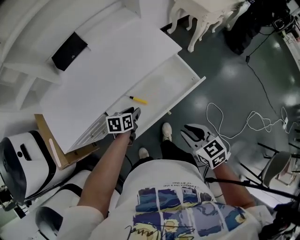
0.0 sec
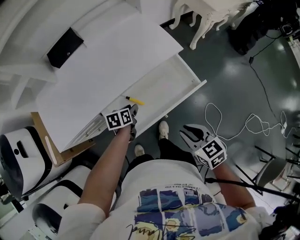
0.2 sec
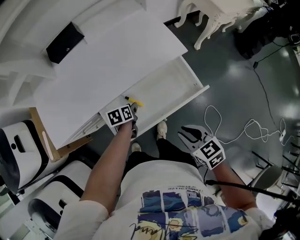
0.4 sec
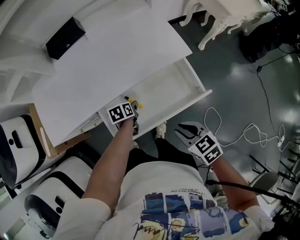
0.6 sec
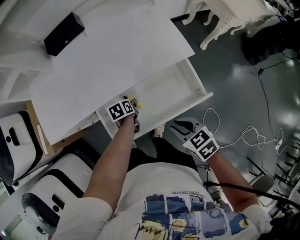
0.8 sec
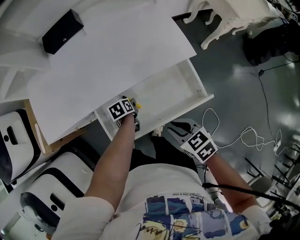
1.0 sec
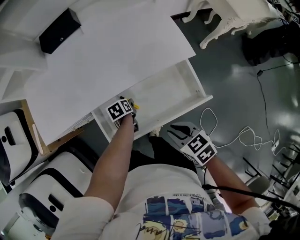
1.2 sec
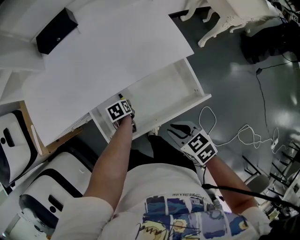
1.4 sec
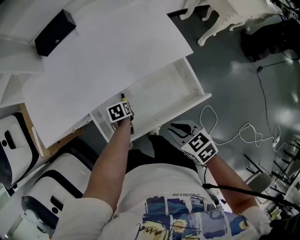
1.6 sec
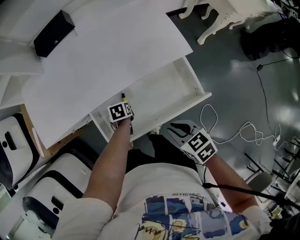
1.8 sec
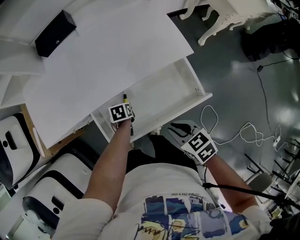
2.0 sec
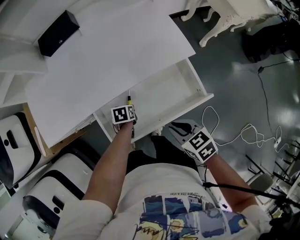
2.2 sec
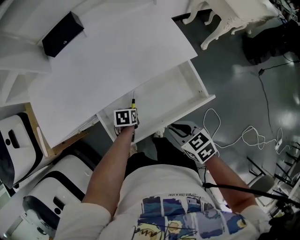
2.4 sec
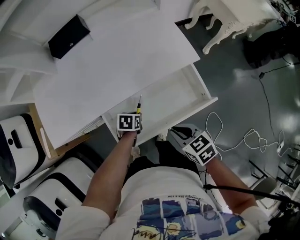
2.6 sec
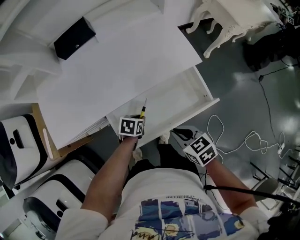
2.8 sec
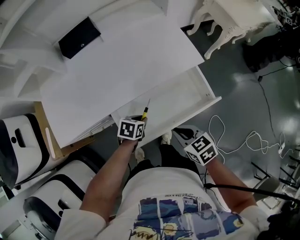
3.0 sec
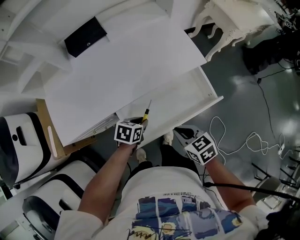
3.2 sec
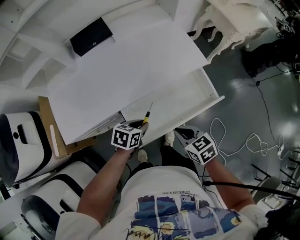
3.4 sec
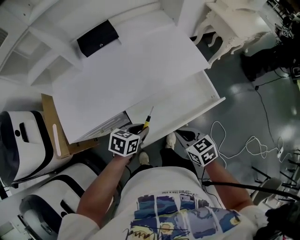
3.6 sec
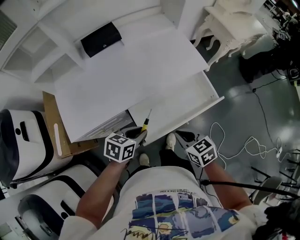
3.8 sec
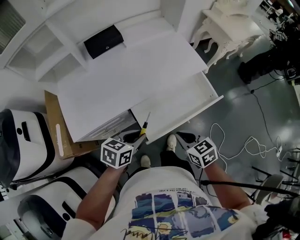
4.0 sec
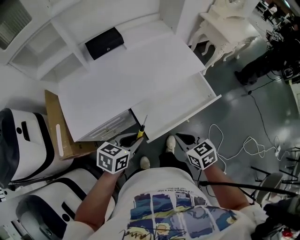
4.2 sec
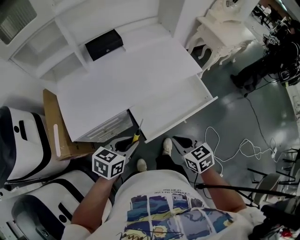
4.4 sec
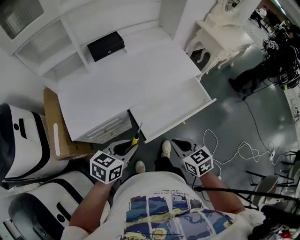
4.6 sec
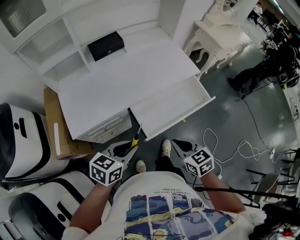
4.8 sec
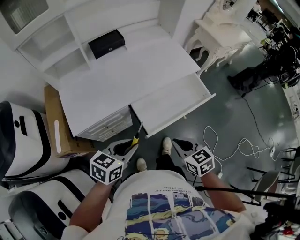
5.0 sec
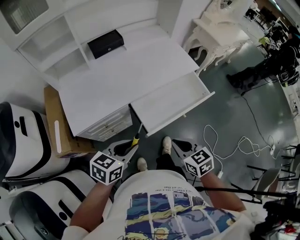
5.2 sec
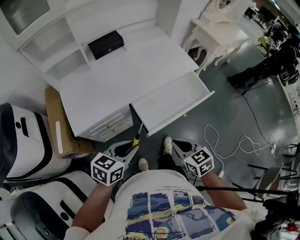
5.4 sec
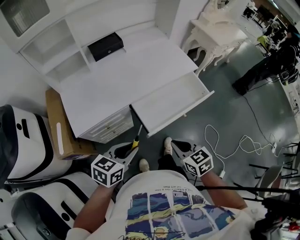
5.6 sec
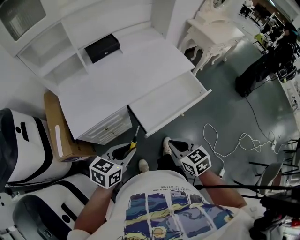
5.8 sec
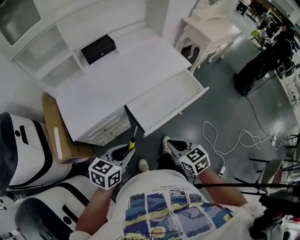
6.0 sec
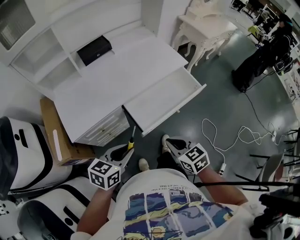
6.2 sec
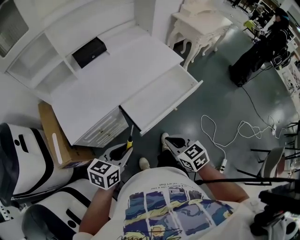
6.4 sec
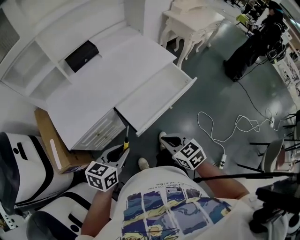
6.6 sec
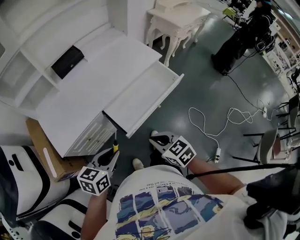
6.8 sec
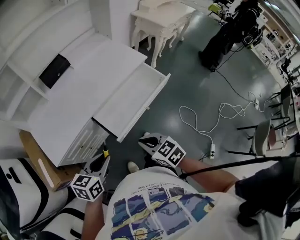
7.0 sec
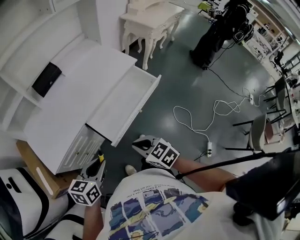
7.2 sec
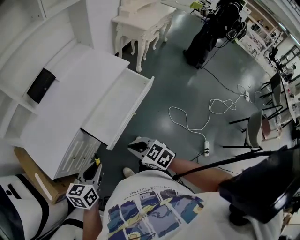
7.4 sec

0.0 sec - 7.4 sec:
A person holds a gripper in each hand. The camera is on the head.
0.0 sec - 1.4 sec: The left gripper is displaced downward by roughly 15 cm, and swivels about 40 degrees, while the right gripper moves approximately 10 cm, and turns by roughly 30 degrees.
1.4 sec - 3.0 sec: The left gripper travels upward by approximately 10 cm, and rotates some 40 degrees; the right gripper changes place by approximately 5 cm.
3.0 sec - 4.4 sec: The right gripper shifts approximately 15 cm to the left, backward and upward. The left gripper shifts roughly 30 cm upward, backward and to the left, and rotates about 30 degrees.
4.4 sec - 6.0 sec: The two grippers go about 5 cm backward.
6.0 sec - 7.4 sec: The grippers stay close to where they were, moving slightly.

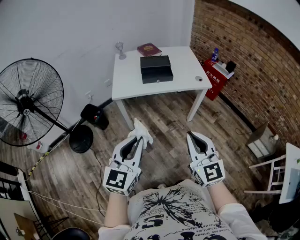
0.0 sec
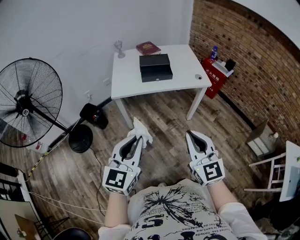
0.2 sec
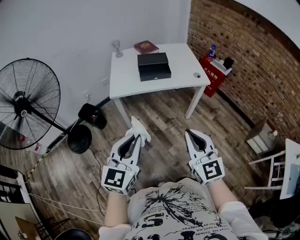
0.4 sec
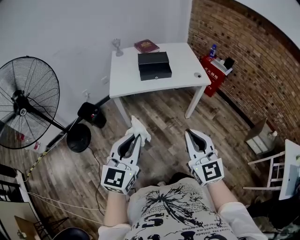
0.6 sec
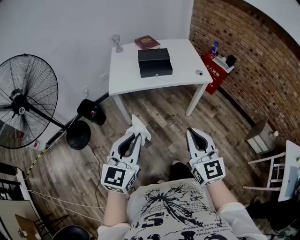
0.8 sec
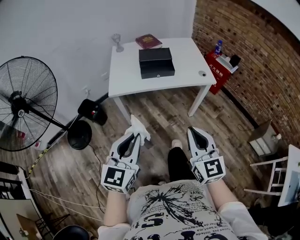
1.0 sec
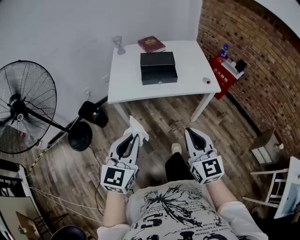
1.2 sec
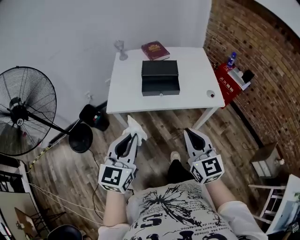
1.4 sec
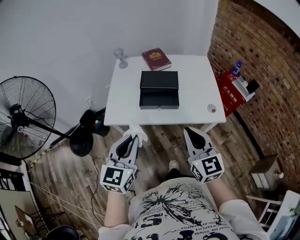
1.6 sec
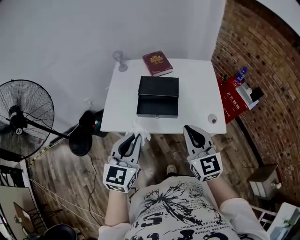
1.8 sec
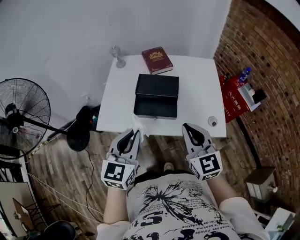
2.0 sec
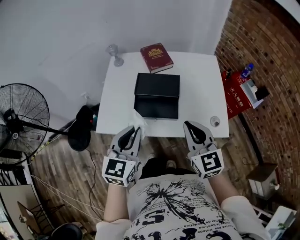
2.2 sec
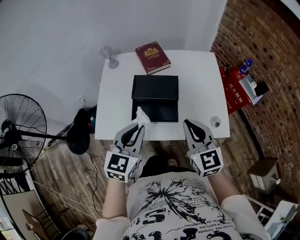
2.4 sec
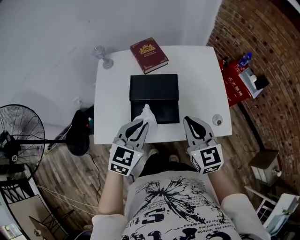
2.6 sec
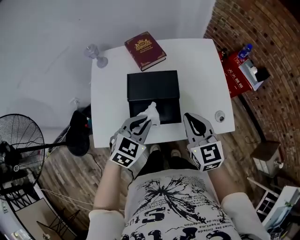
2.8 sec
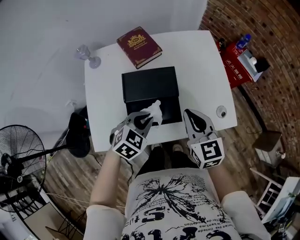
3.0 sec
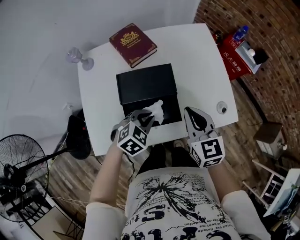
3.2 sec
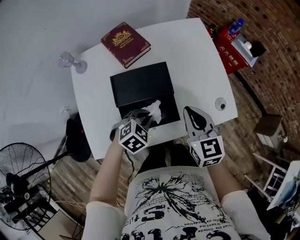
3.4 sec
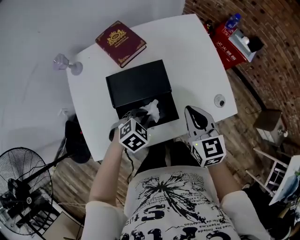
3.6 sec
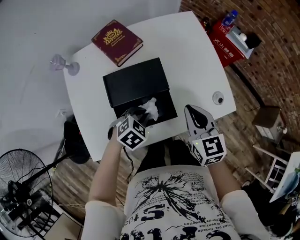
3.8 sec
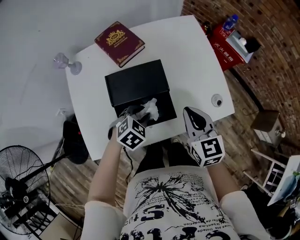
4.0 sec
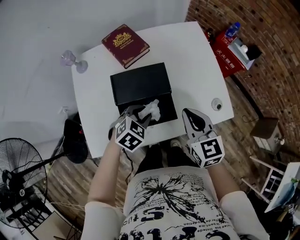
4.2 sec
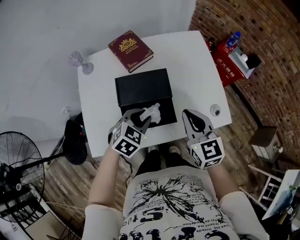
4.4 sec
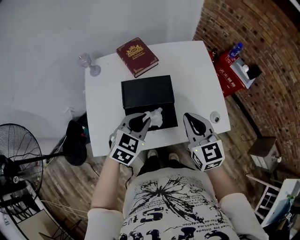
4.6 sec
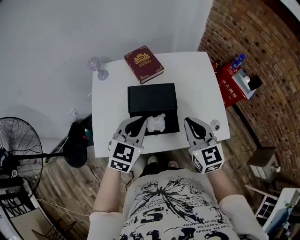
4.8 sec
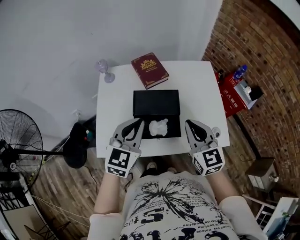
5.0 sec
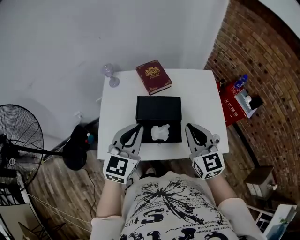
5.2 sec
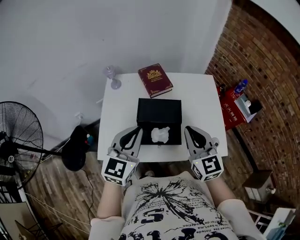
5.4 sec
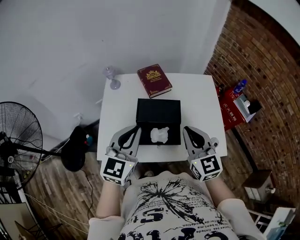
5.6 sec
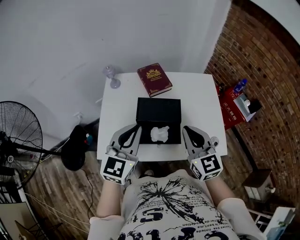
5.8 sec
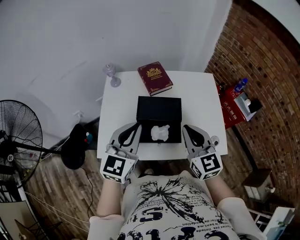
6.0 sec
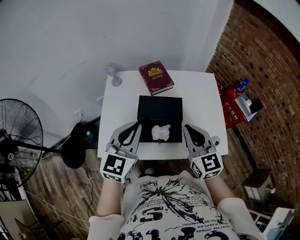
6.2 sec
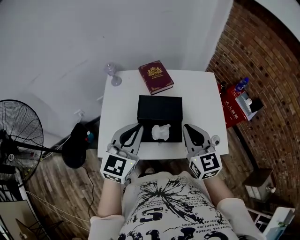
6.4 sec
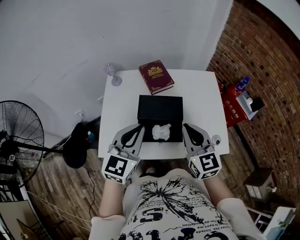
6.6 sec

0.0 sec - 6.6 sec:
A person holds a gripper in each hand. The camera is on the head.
0.0 sec - 1.6 sec: Both grippers travel together forward, about 35 cm.
1.6 sec - 3.2 sec: The left gripper changes place by roughly 40 cm, and points its fingers some 40 degrees further downward; the right gripper shifts by roughly 35 cm, and rotates some 20 degrees.
3.2 sec - 5.0 sec: The right gripper heads upward, covering approximately 10 cm, while the left gripper goes some 20 cm upward, tips its fingers upward by roughly 40 degrees, and opens, then closes again.
5.0 sec - 6.6 sec: The grippers move only a little.

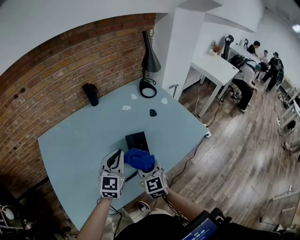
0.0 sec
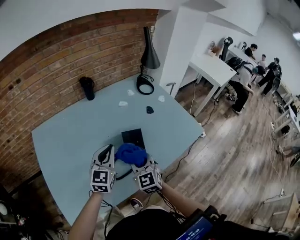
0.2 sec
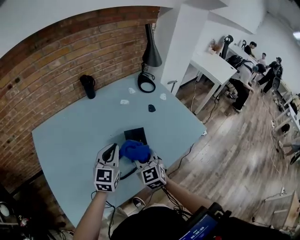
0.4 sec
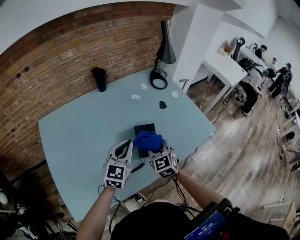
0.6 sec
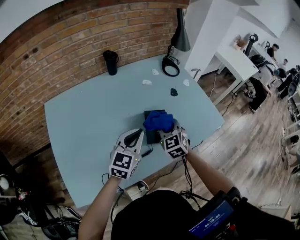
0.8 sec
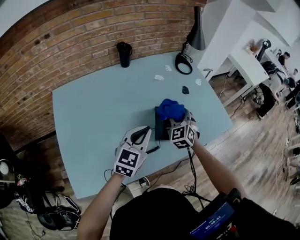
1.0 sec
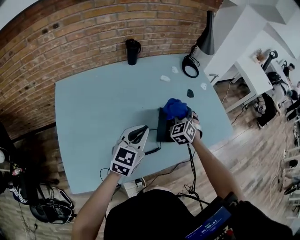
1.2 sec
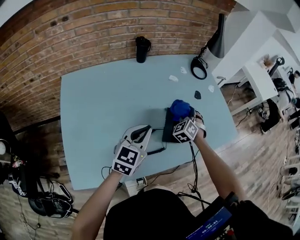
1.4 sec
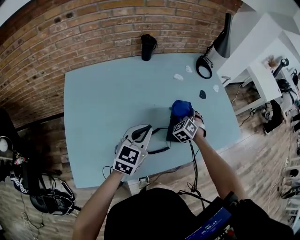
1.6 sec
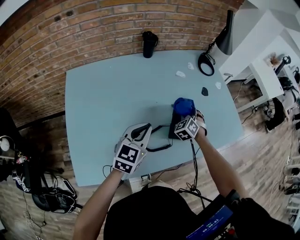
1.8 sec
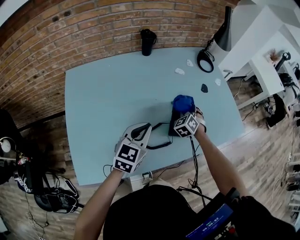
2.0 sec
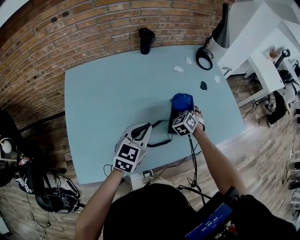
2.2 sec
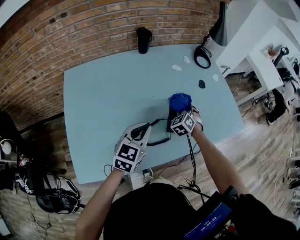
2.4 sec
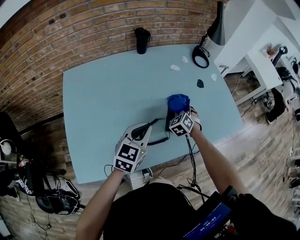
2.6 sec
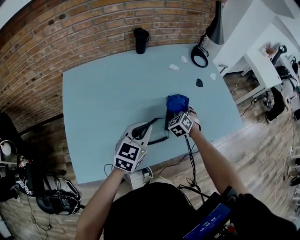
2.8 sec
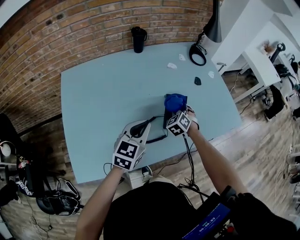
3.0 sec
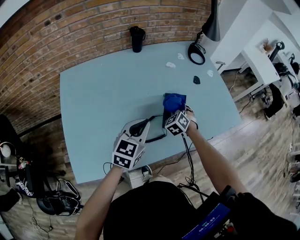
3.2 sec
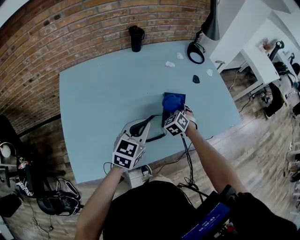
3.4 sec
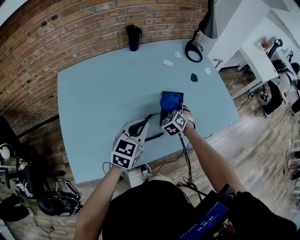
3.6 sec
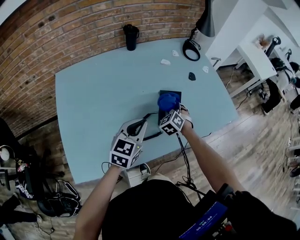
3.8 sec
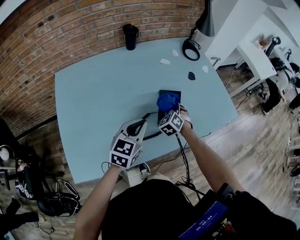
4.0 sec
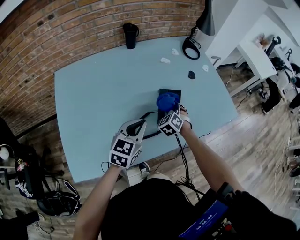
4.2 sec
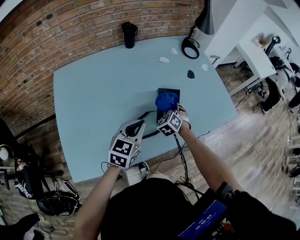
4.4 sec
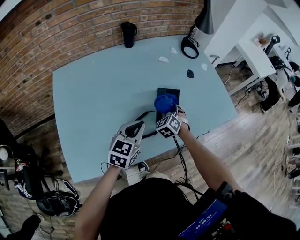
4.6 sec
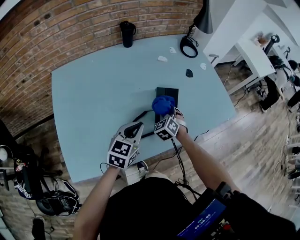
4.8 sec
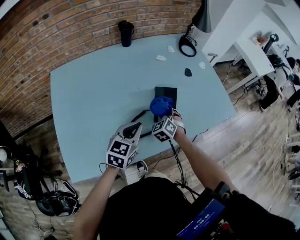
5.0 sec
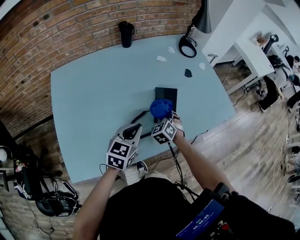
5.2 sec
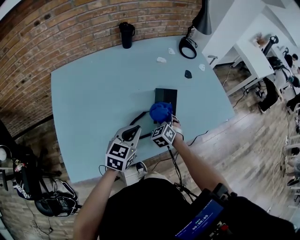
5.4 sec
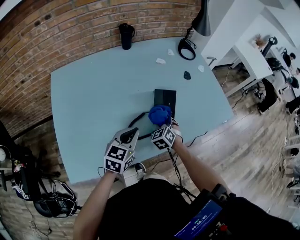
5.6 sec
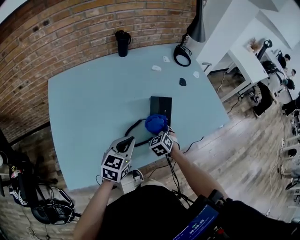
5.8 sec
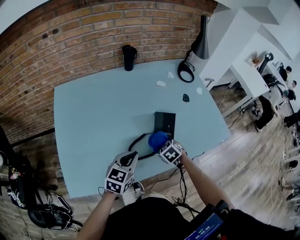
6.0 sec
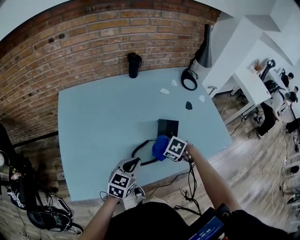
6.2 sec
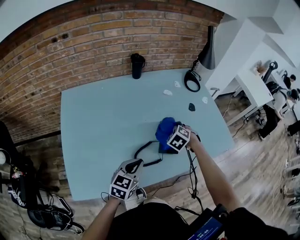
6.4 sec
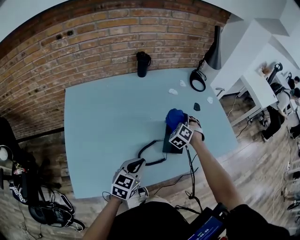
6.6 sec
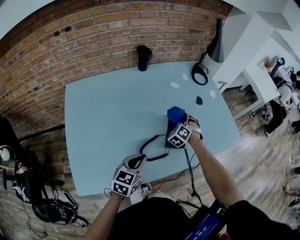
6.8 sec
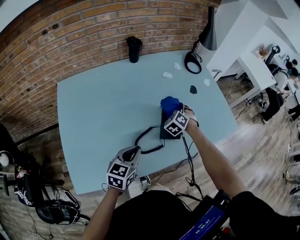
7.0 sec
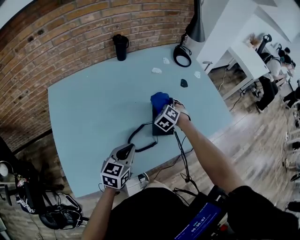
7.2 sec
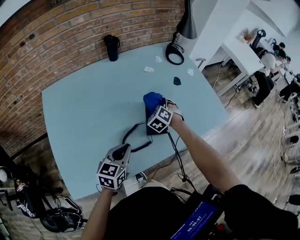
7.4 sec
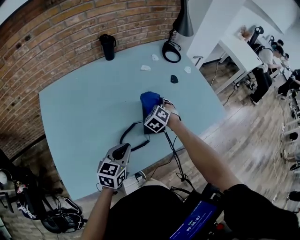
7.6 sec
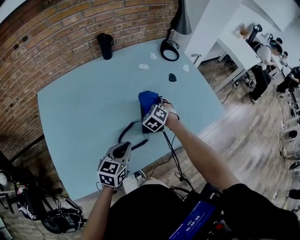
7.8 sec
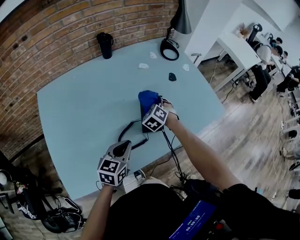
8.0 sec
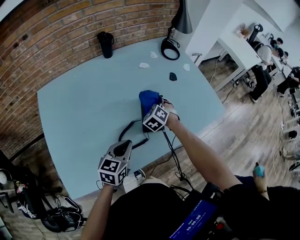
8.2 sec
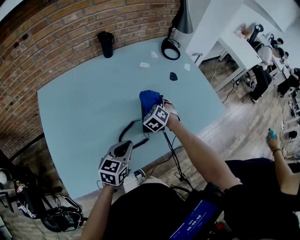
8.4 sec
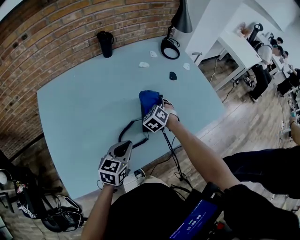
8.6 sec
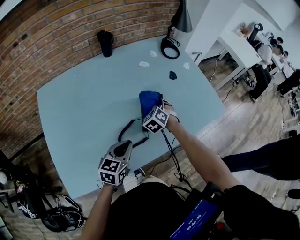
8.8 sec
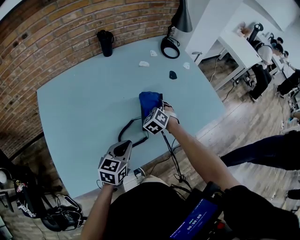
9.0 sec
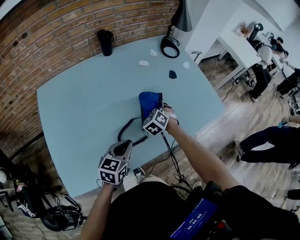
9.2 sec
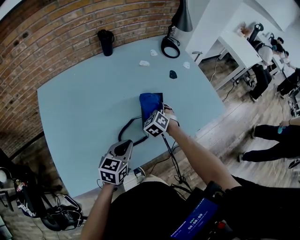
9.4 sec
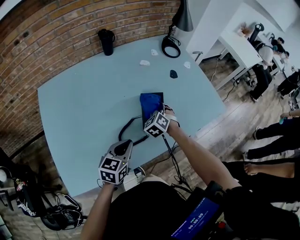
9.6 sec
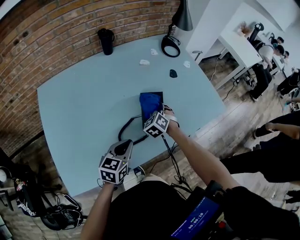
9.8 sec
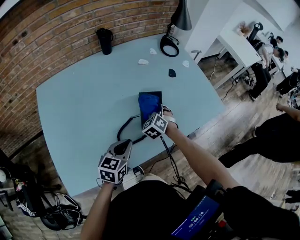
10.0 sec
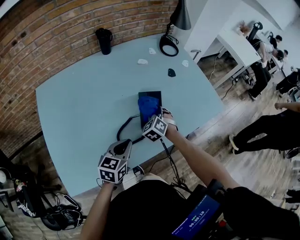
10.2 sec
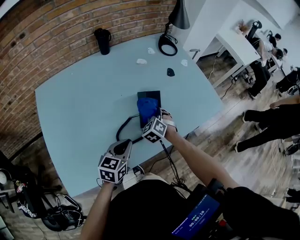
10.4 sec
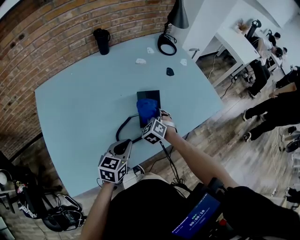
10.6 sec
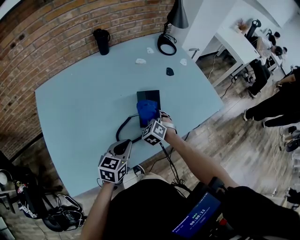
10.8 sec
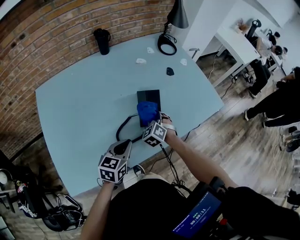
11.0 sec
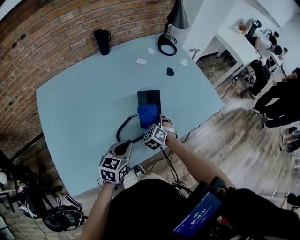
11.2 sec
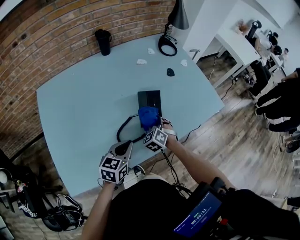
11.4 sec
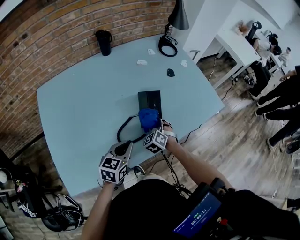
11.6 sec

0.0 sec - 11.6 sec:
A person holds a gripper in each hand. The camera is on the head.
0.0 sec - 1.4 sec: The right gripper goes some 20 cm forward and downward, and rotates around the line of its fingers by approximately 40 degrees, counterclockwise from behind; the left gripper travels to the left by some 5 cm.
1.4 sec - 2.8 sec: The right gripper moves downward, roughly 5 cm.
2.8 sec - 4.4 sec: The grippers make only small movements.
4.4 sec - 5.8 sec: The right gripper is displaced backward by some 5 cm.
5.8 sec - 7.2 sec: The right gripper changes place by about 15 cm.
7.2 sec - 8.8 sec: The grippers move only a little.
8.8 sec - 10.2 sec: The grippers stay close to where they were, moving slightly.
10.2 sec - 11.6 sec: The right gripper shifts some 5 cm backward.
